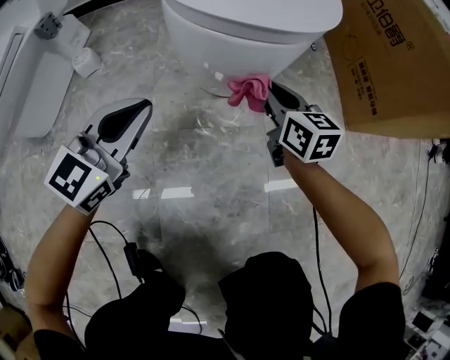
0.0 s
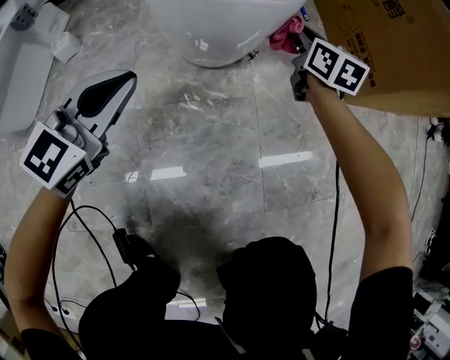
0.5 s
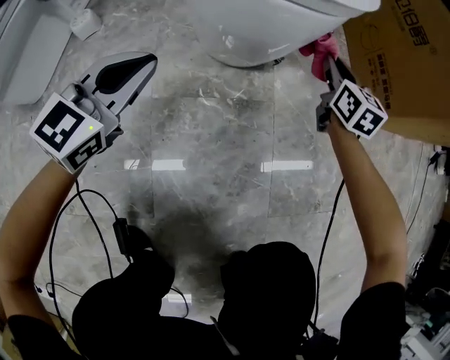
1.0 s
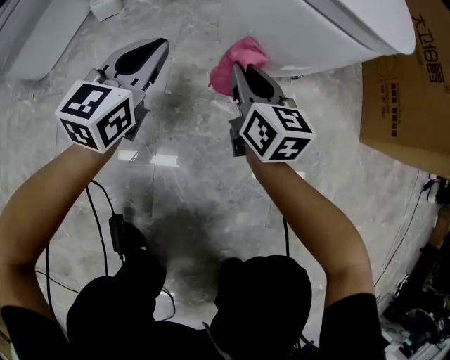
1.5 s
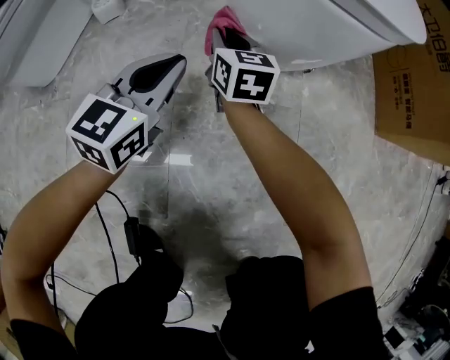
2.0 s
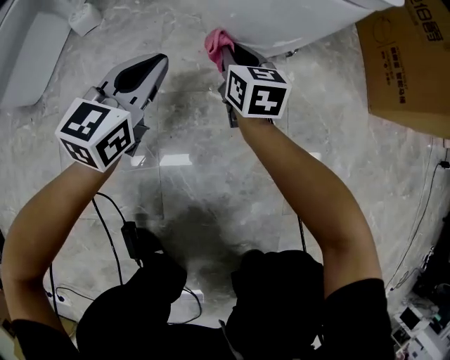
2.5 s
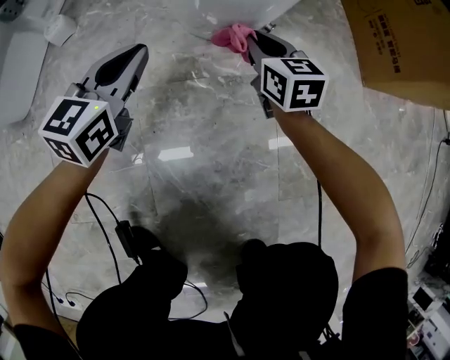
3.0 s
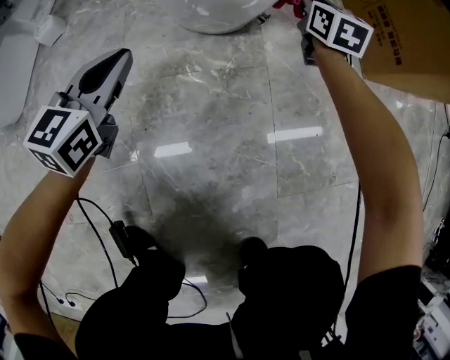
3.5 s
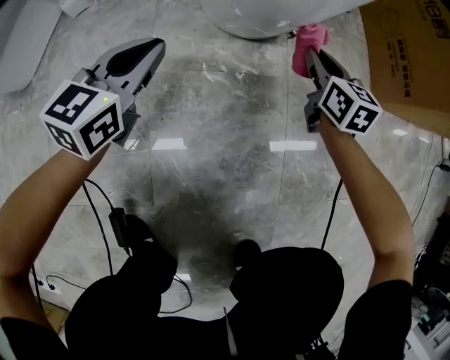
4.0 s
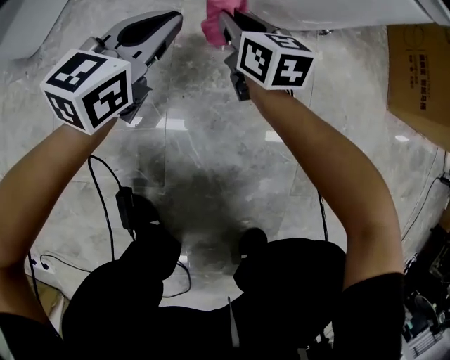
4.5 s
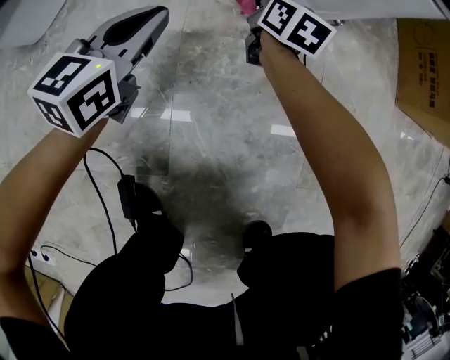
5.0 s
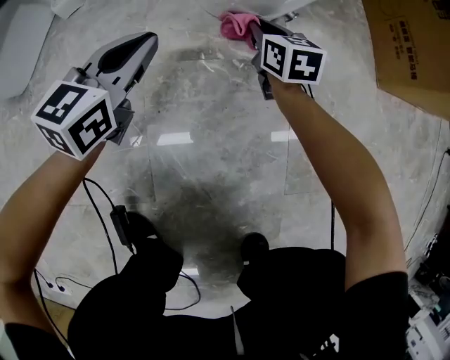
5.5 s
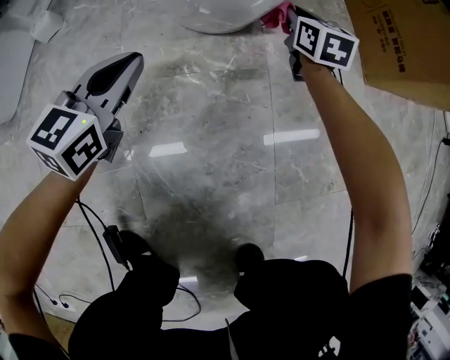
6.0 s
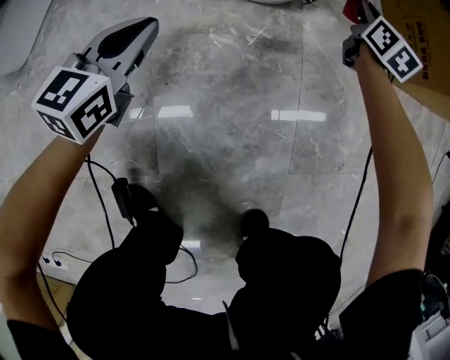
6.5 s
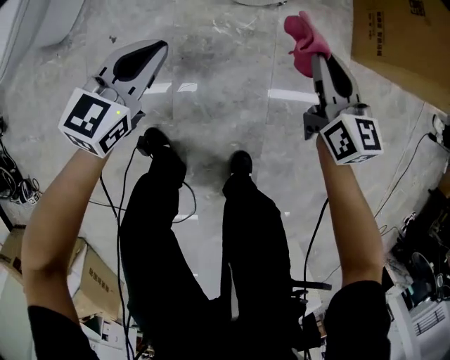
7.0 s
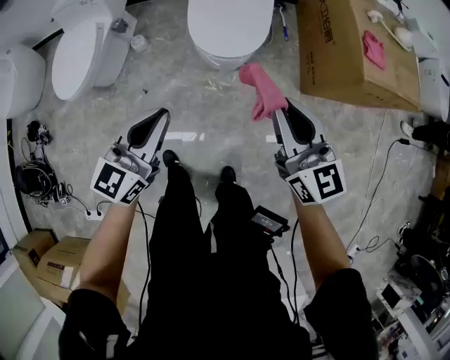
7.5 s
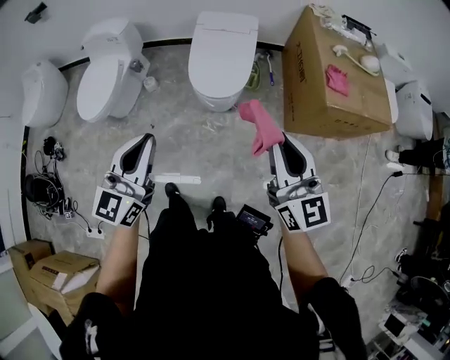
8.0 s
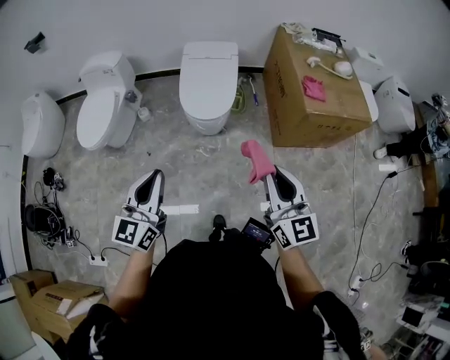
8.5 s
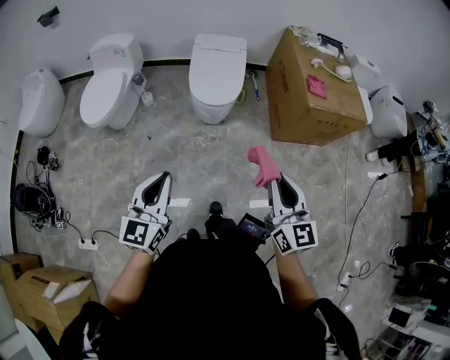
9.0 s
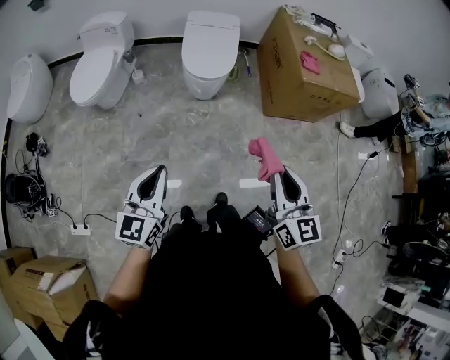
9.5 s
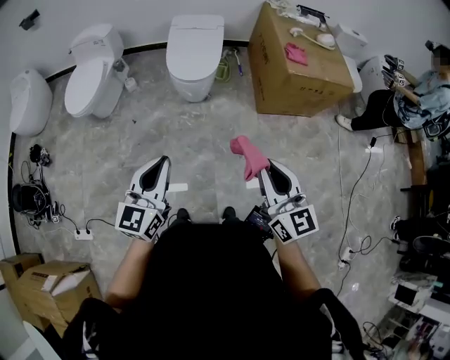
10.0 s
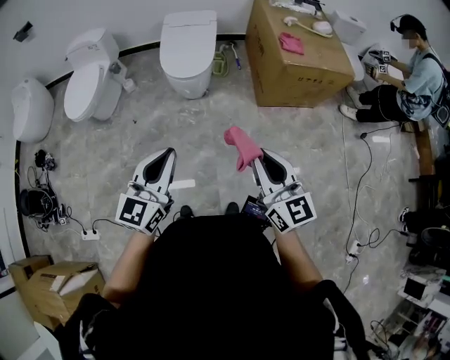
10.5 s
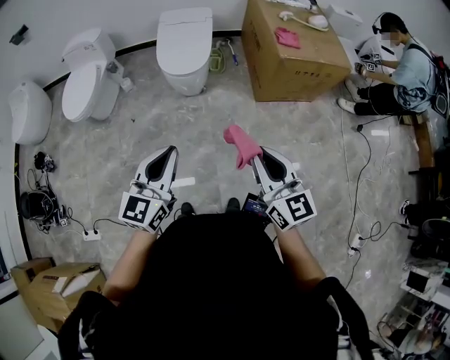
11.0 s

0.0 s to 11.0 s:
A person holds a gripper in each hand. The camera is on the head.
0.0 to 2.0 s: The left gripper travels downward by approximately 10 cm. The right gripper heads to the left, covering roughly 20 cm.
2.0 to 3.5 s: The left gripper ends up about 5 cm from where it was; the right gripper travels to the right by approximately 30 cm, and turns by some 20 degrees.
3.5 to 5.5 s: The left gripper reaches about 10 cm to the left, then returns, while the right gripper is displaced to the left, backward and downward by approximately 20 cm.
5.5 to 7.5 s: Both grippers move upward, about 60 cm. The right gripper changes its angle by about 30 degrees.
7.5 to 9.0 s: Both grippers move backward and upward, roughly 30 cm.
9.0 to 11.0 s: The right gripper heads to the right and backward, covering approximately 10 cm. The left gripper goes roughly 15 cm to the right.

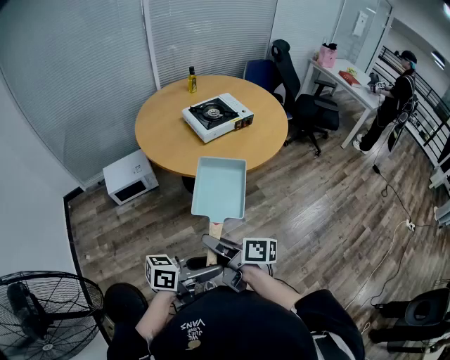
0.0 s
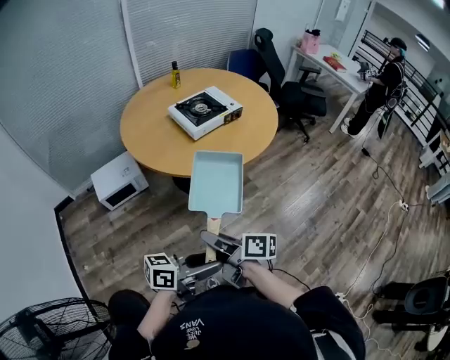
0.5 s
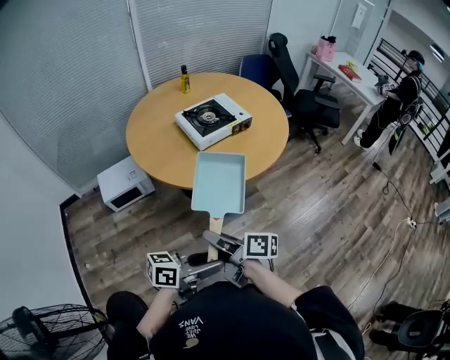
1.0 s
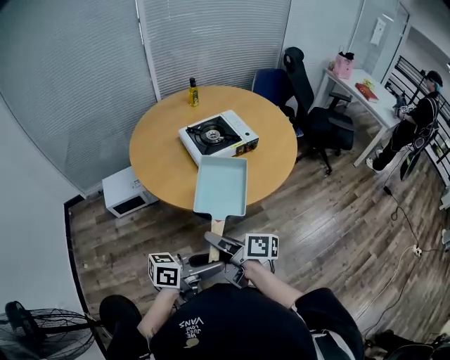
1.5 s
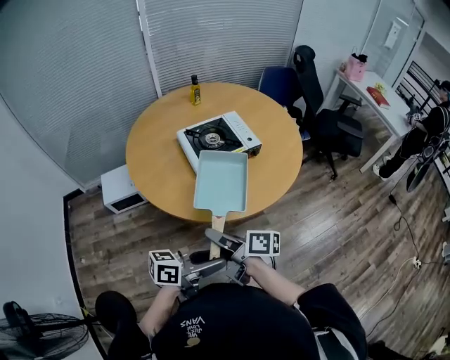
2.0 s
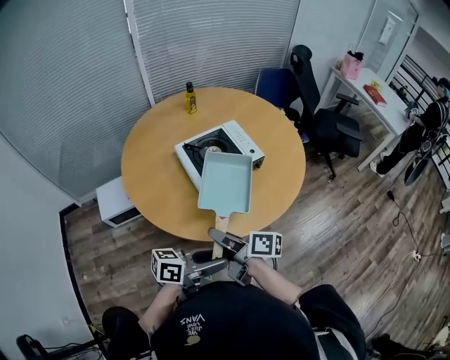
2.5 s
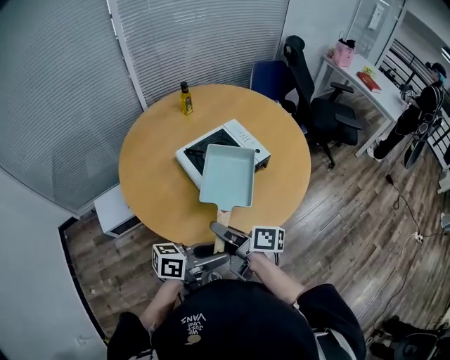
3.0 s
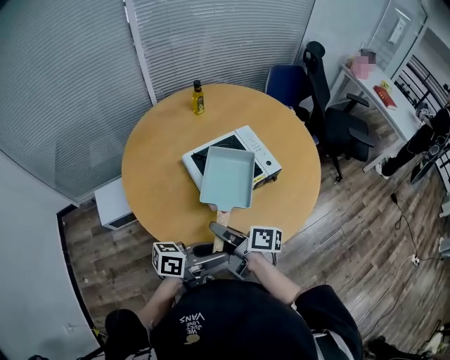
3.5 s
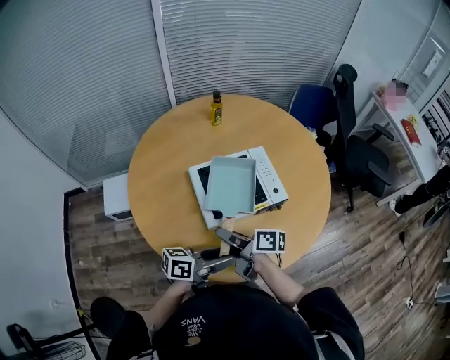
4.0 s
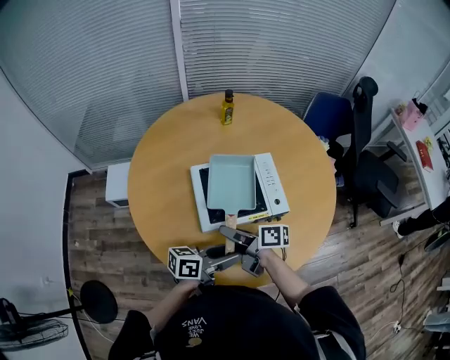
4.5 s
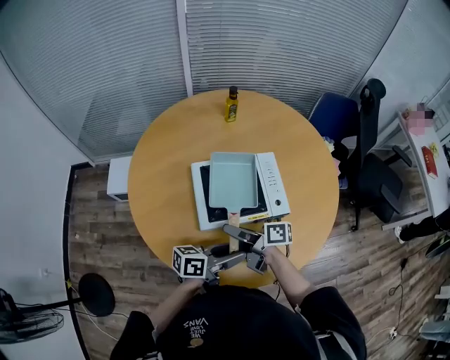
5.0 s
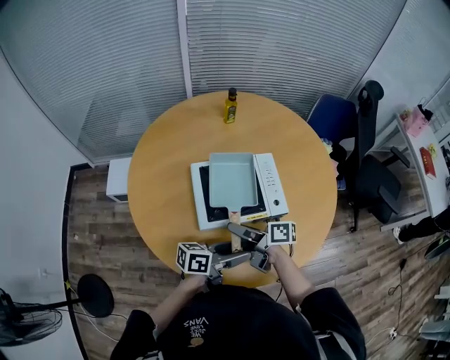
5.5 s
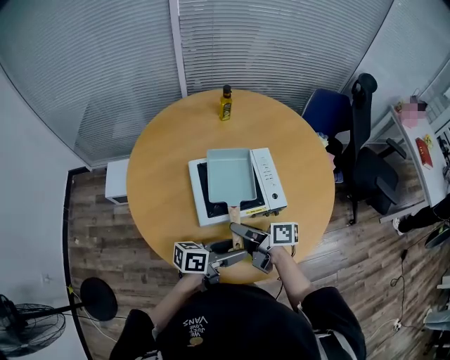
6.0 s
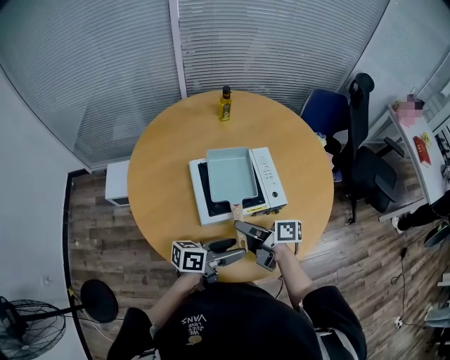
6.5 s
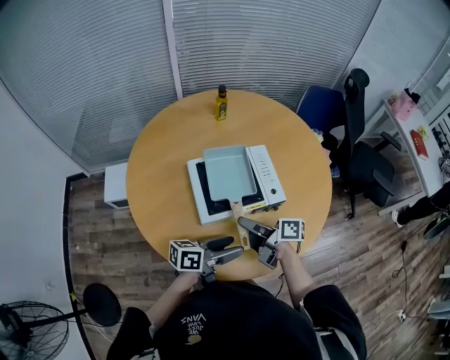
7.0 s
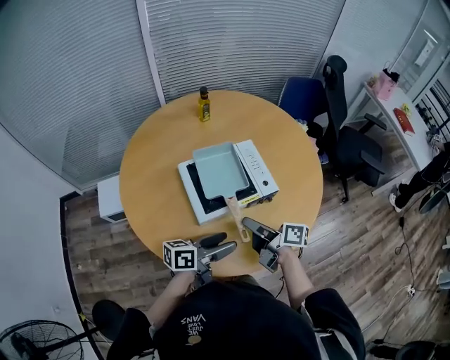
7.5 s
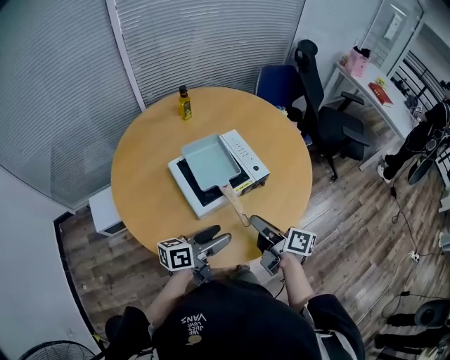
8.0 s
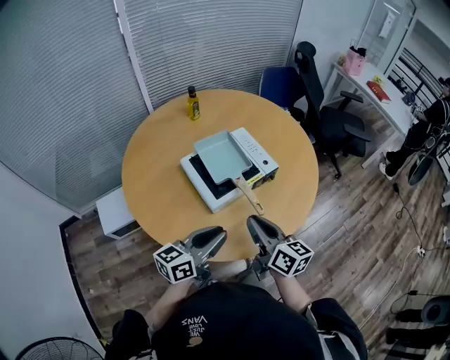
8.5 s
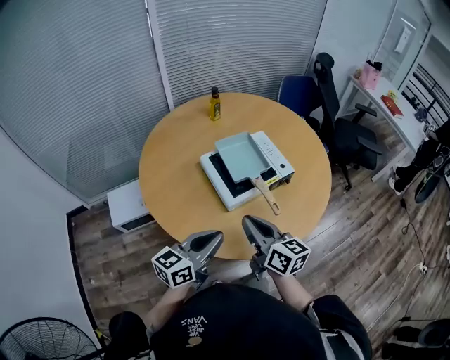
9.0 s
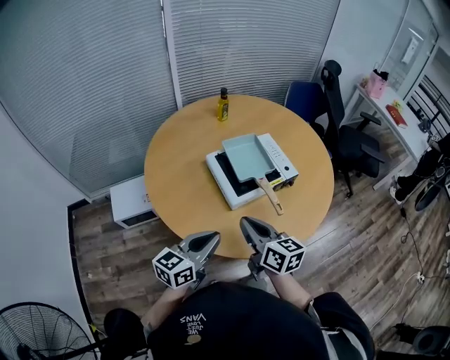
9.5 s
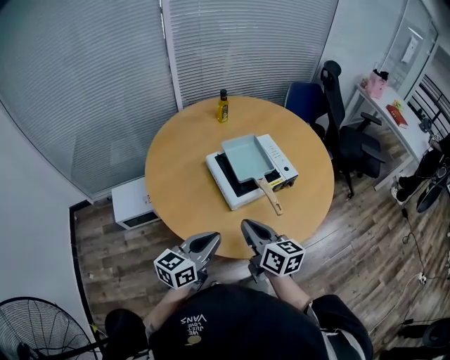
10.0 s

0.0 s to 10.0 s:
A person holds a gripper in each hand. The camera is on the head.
0.0 to 2.0 s: The grippers both shift forward by roughly 25 cm.
2.0 to 4.0 s: The grippers both shift forward by approximately 25 cm.
4.0 to 6.0 s: The left gripper changes place by roughly 10 cm. Meanwhile the right gripper shifts by approximately 10 cm.
6.0 to 8.0 s: The right gripper moves approximately 10 cm, and rotates some 40 degrees. Meanwhile the left gripper changes place by some 10 cm.
8.0 to 10.0 s: The two grippers go some 15 cm to the left and backward. The right gripper rotates roughly 30 degrees, and closes up; the left gripper rotates approximately 30 degrees, and closes.

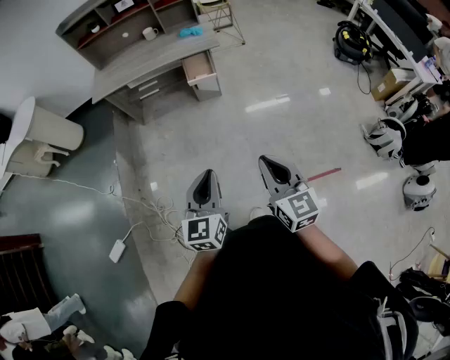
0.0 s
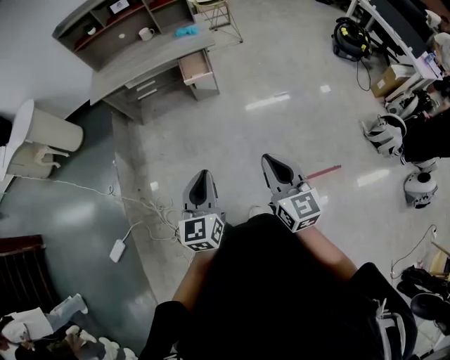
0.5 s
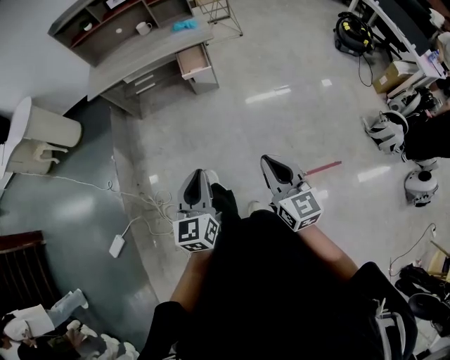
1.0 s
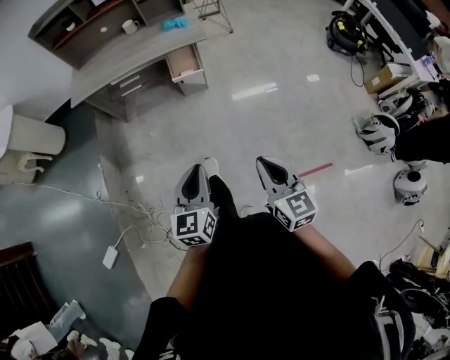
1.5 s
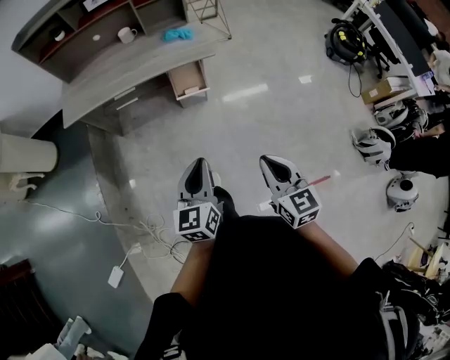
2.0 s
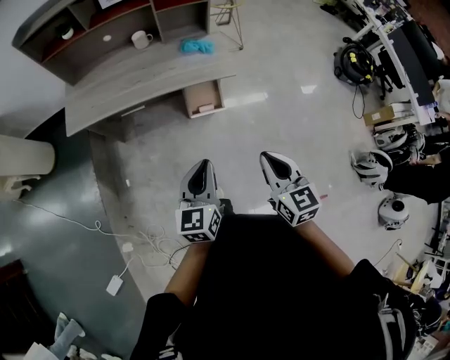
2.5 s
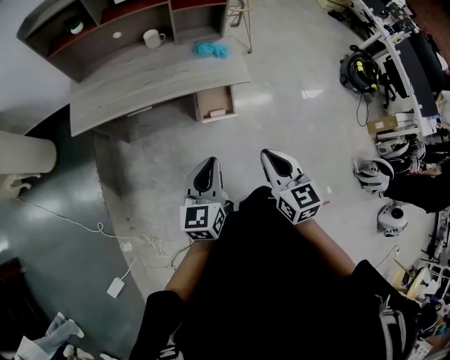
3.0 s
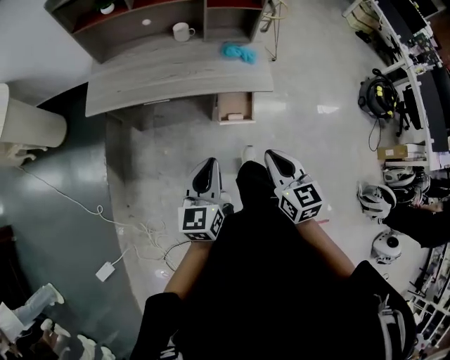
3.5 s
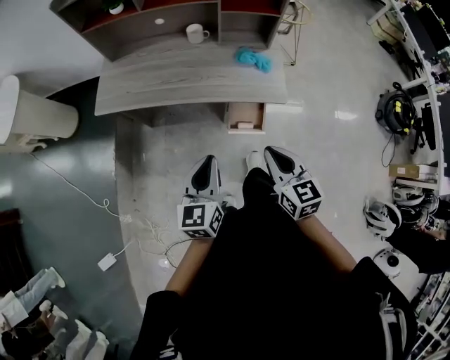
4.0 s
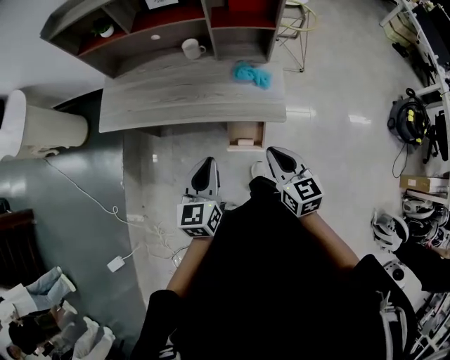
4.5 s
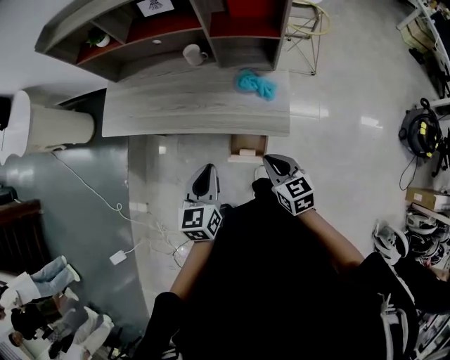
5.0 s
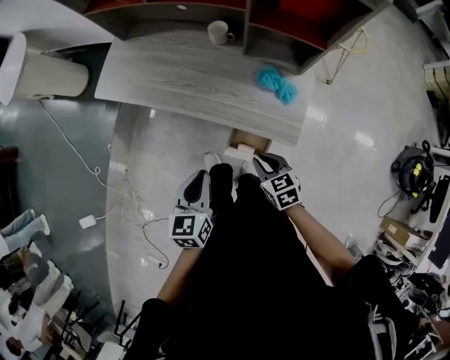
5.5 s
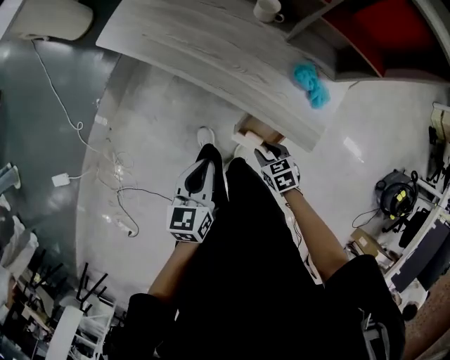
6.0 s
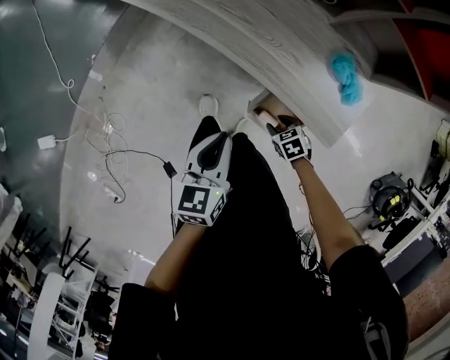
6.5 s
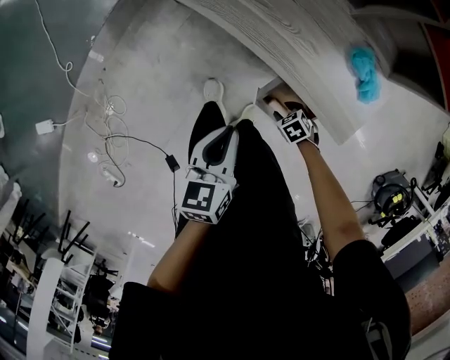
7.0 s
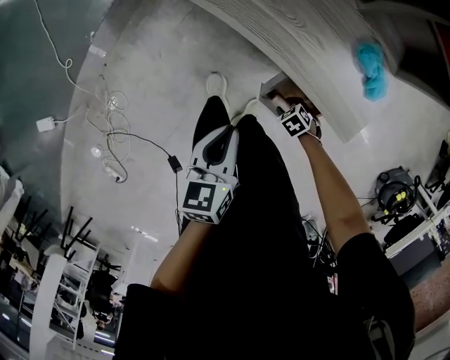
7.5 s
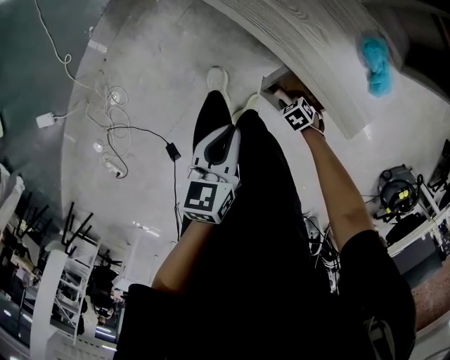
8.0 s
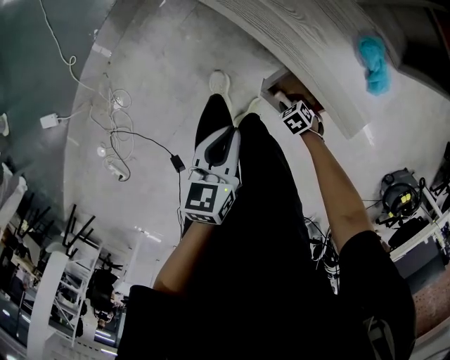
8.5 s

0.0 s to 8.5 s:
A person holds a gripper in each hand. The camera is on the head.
0.0 to 2.0 s: Both grippers move forward, approximately 30 cm.
2.0 to 4.0 s: The grippers both shift forward by approximately 35 cm.
4.0 to 6.5 s: The left gripper moves downward, about 25 cm, and swivels approximately 30 degrees; the right gripper goes some 50 cm downward, tips its fingers downward by approximately 50 degrees, and opens up.
6.5 to 8.5 s: The left gripper ends up some 5 cm from where it was, while the right gripper is displaced downward by about 10 cm.
